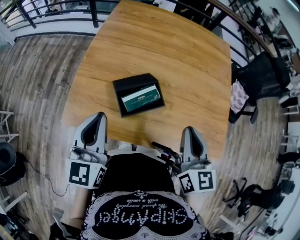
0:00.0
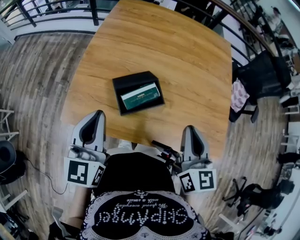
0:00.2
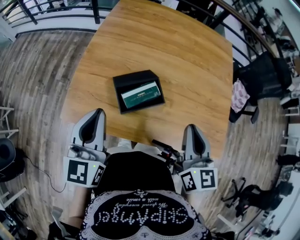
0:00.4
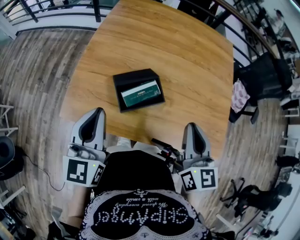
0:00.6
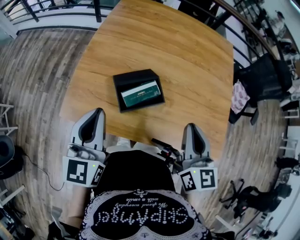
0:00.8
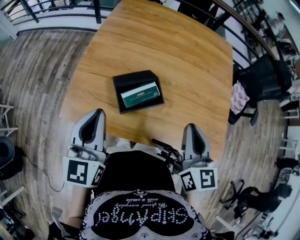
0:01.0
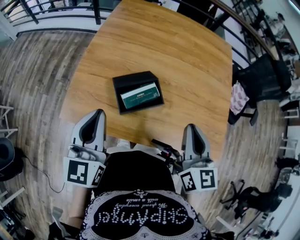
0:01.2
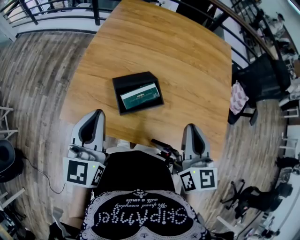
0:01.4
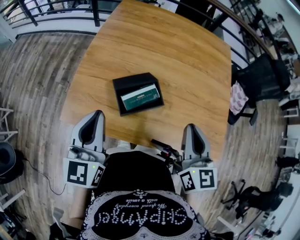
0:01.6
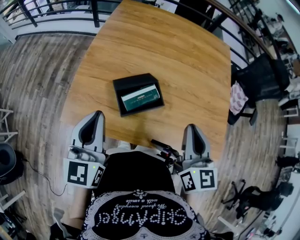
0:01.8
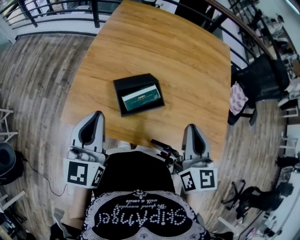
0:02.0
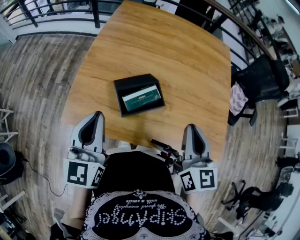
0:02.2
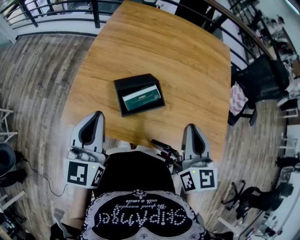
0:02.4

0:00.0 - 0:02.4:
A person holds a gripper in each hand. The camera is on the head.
0:00.0 - 0:02.4: Both grippers stay put.

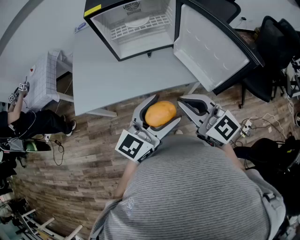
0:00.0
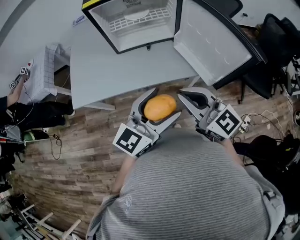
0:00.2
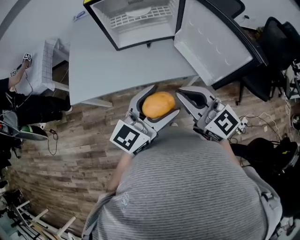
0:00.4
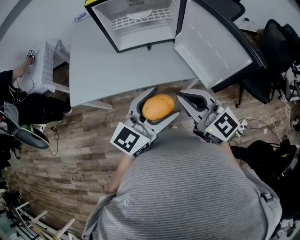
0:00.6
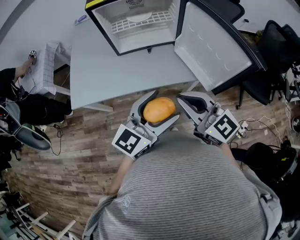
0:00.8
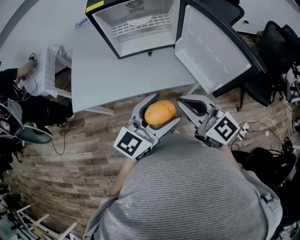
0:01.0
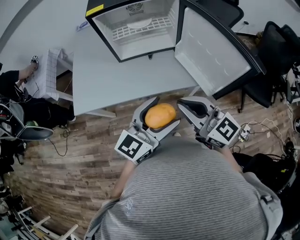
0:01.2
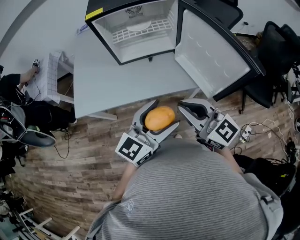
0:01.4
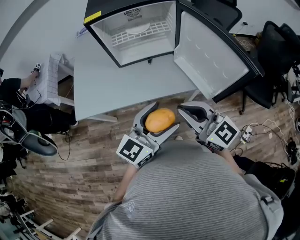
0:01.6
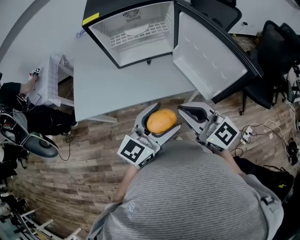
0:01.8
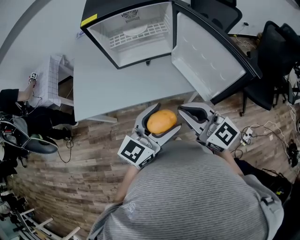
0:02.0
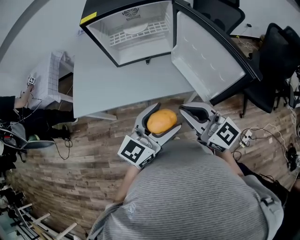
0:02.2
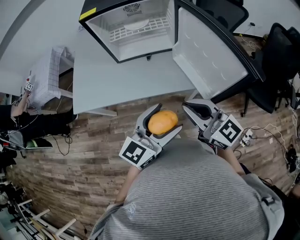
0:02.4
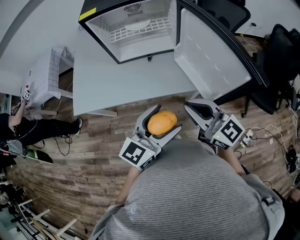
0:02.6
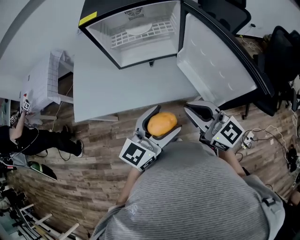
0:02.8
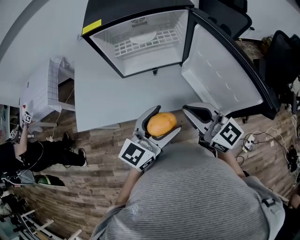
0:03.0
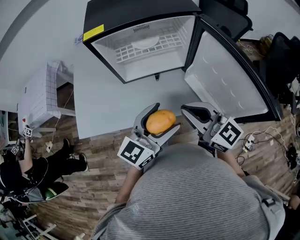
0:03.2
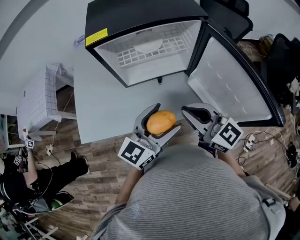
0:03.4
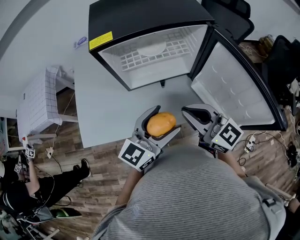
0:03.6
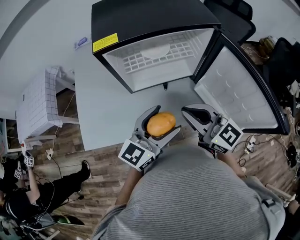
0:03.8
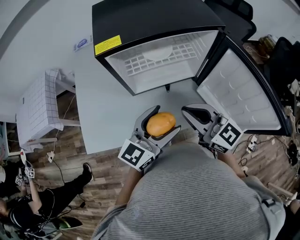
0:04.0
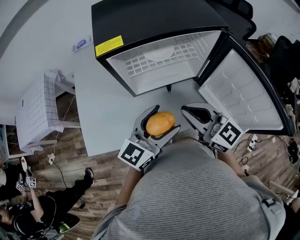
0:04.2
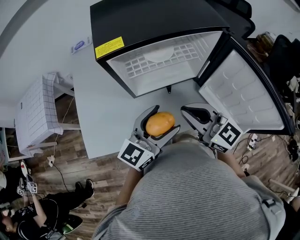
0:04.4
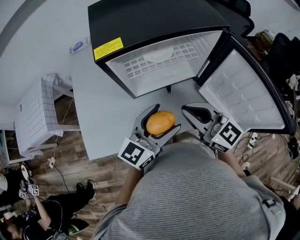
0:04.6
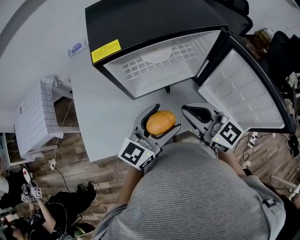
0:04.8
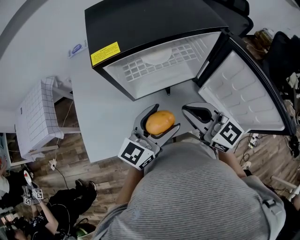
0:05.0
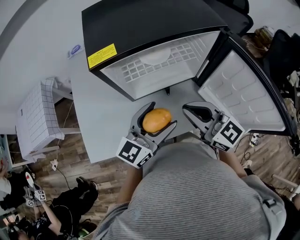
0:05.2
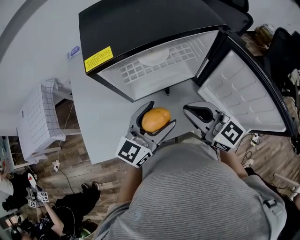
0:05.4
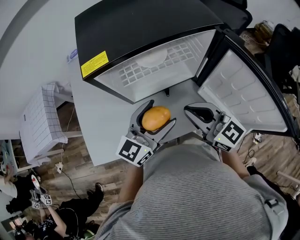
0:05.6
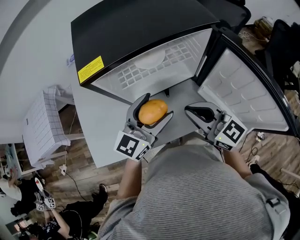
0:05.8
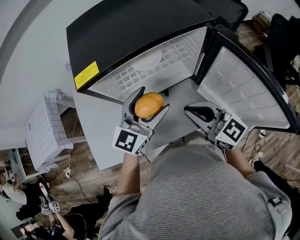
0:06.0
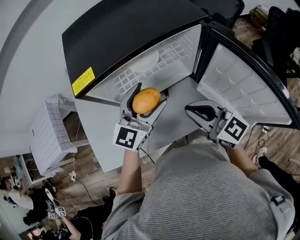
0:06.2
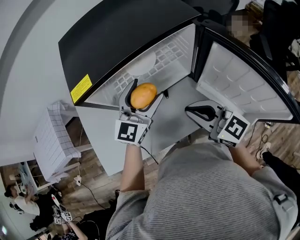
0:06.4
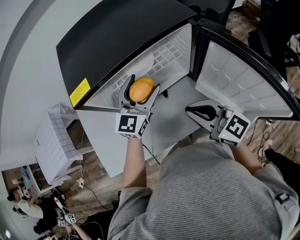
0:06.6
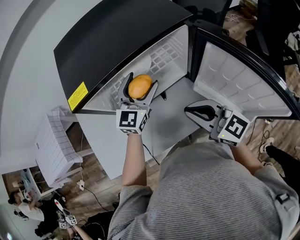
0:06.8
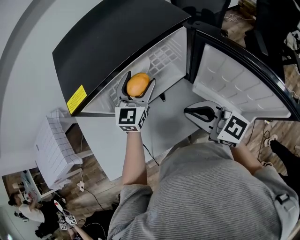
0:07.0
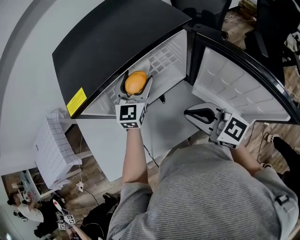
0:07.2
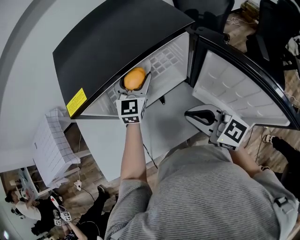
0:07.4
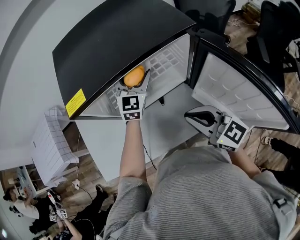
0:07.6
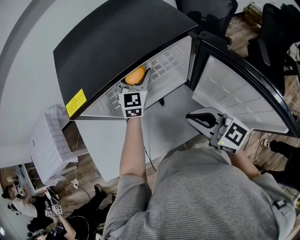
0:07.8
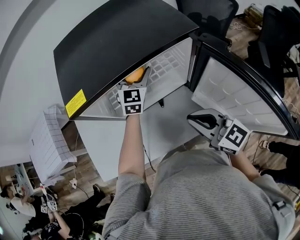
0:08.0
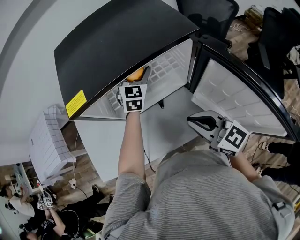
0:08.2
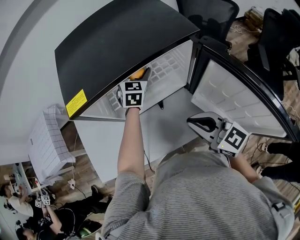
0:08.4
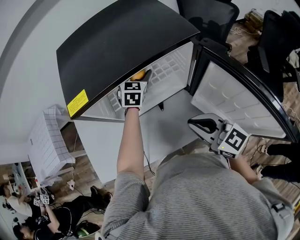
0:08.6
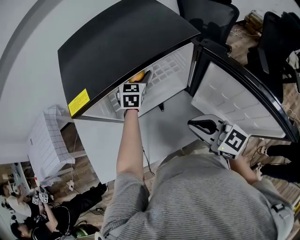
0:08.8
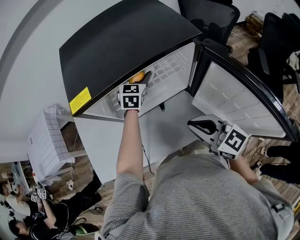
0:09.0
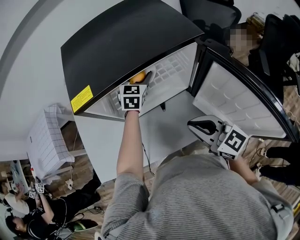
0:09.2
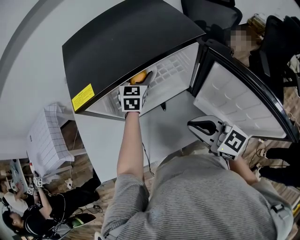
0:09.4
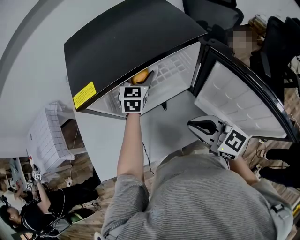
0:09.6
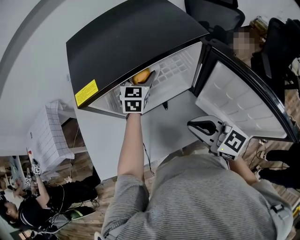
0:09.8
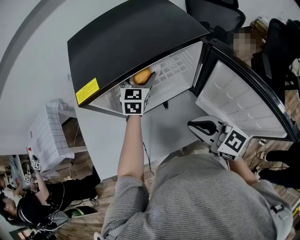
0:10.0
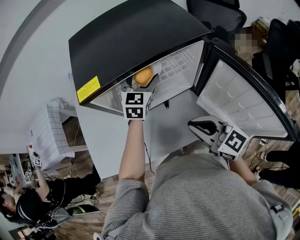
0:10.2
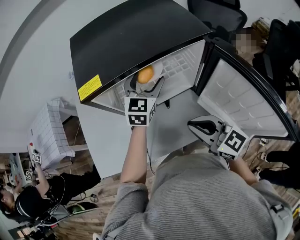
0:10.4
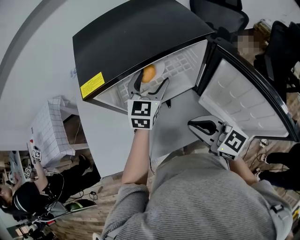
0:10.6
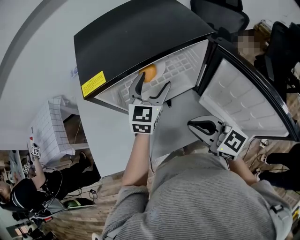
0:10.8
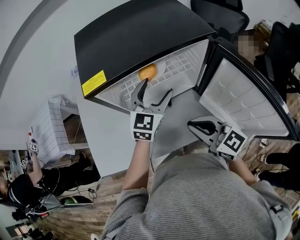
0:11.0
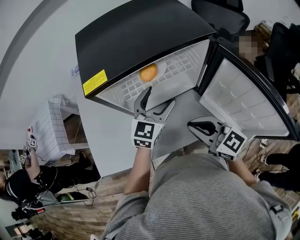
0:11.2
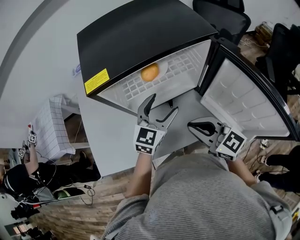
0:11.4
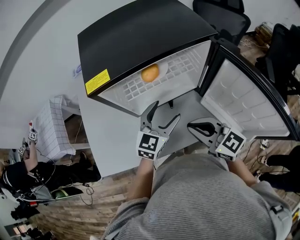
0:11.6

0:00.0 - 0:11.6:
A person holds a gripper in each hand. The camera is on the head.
0:00.0 - 0:01.4: The grippers move only a little.
0:01.4 - 0:02.8: The left gripper shifts by some 5 cm. The right gripper moves forward, some 5 cm.
0:02.8 - 0:04.4: Both grippers move forward and to the left, some 25 cm.
0:04.4 - 0:05.8: The right gripper ends up roughly 5 cm from where it was. Meanwhile the left gripper moves forward, roughly 10 cm.
0:05.8 - 0:07.2: The left gripper shifts approximately 15 cm forward, and changes its angle by about 20 degrees.
0:07.2 - 0:08.8: The left gripper shifts approximately 10 cm forward, and swivels about 20 degrees.
0:08.8 - 0:10.2: The left gripper moves backward, about 5 cm.
0:10.2 - 0:11.6: The left gripper travels backward by roughly 15 cm.

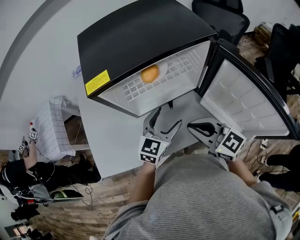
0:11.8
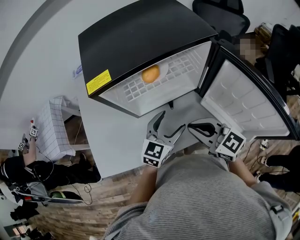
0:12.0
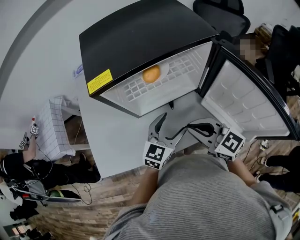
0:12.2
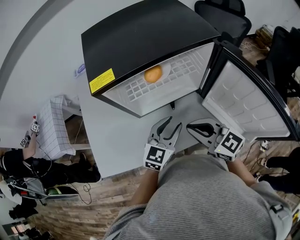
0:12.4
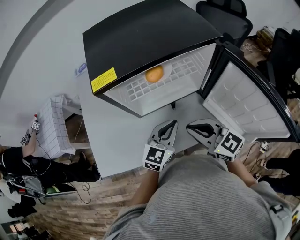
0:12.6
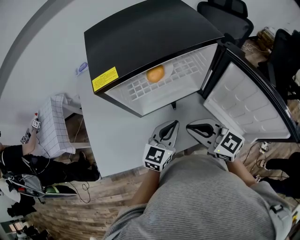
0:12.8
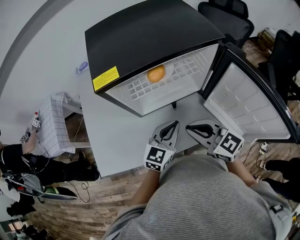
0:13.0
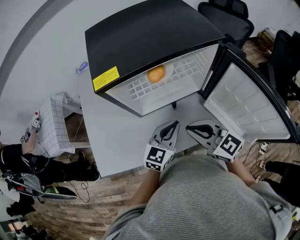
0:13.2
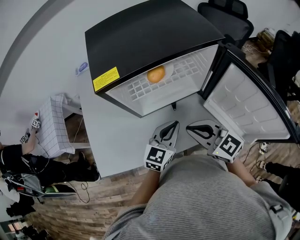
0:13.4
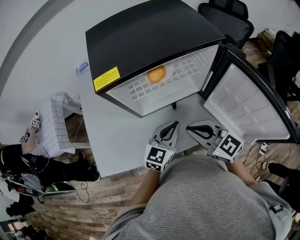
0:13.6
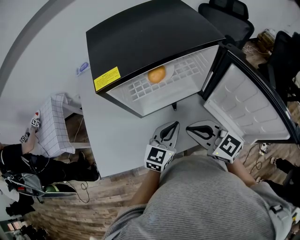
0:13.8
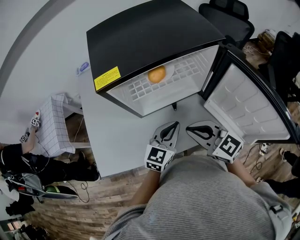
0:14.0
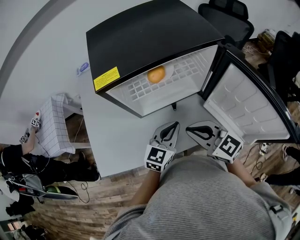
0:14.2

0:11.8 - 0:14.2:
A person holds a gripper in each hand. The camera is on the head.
0:11.8 - 0:13.0: The left gripper closes.
0:13.0 - 0:14.2: The grippers move only a little.

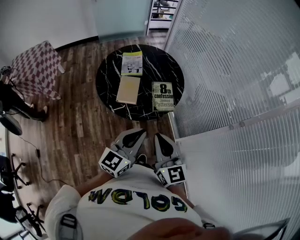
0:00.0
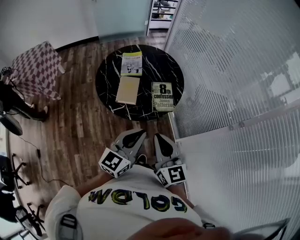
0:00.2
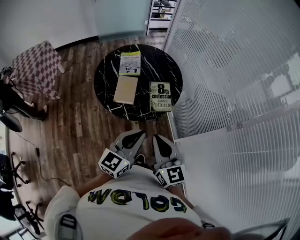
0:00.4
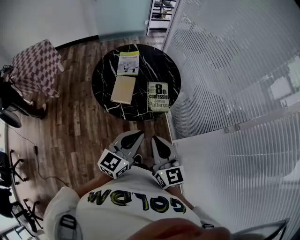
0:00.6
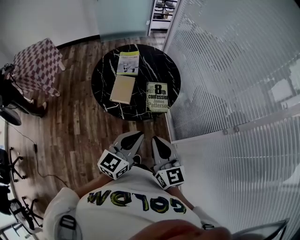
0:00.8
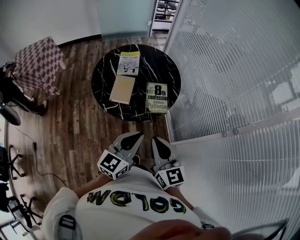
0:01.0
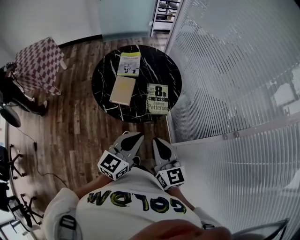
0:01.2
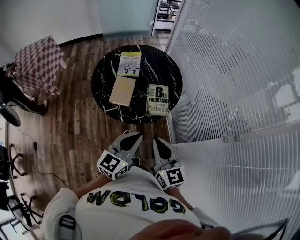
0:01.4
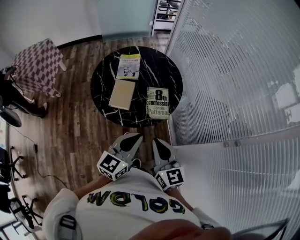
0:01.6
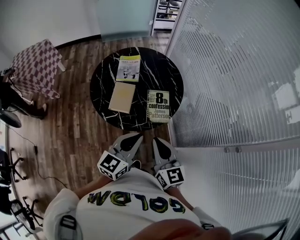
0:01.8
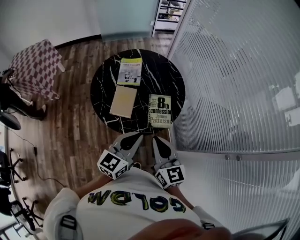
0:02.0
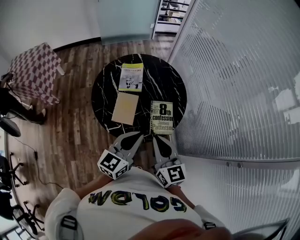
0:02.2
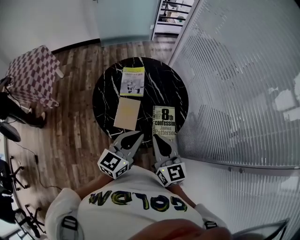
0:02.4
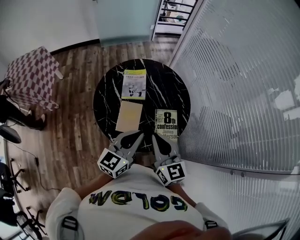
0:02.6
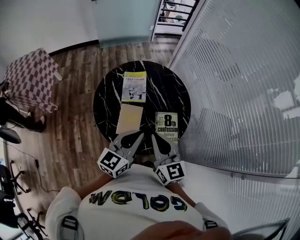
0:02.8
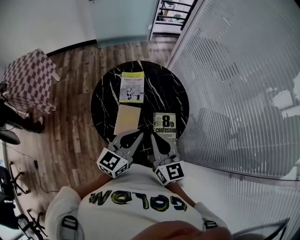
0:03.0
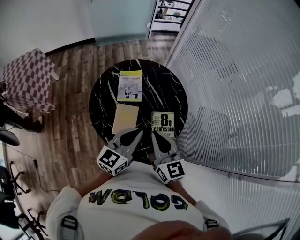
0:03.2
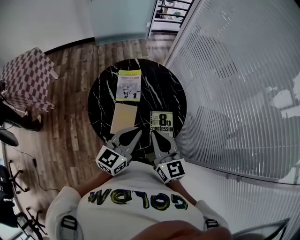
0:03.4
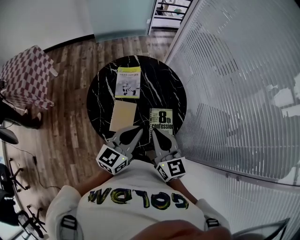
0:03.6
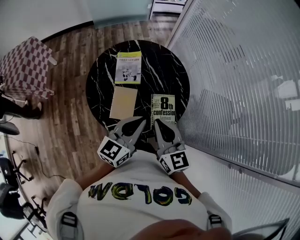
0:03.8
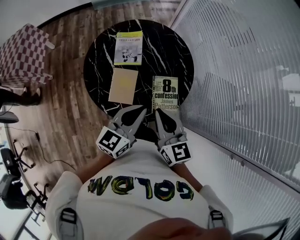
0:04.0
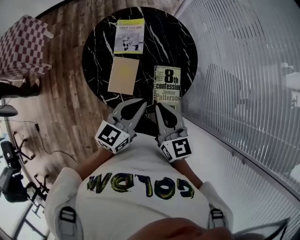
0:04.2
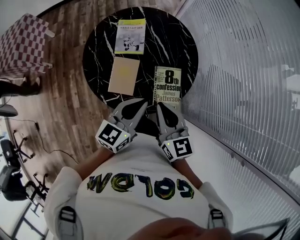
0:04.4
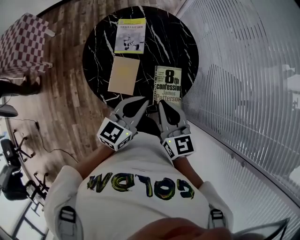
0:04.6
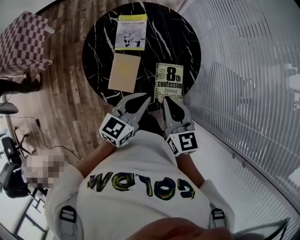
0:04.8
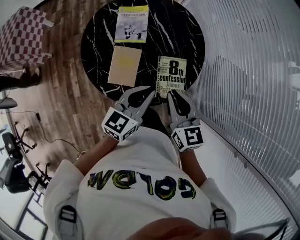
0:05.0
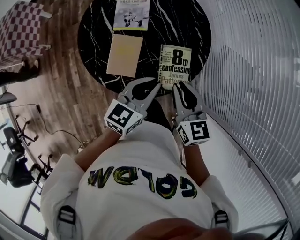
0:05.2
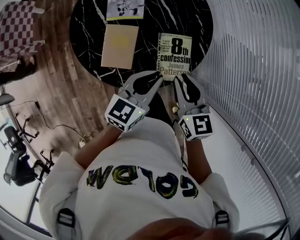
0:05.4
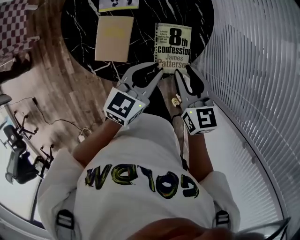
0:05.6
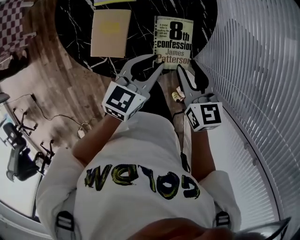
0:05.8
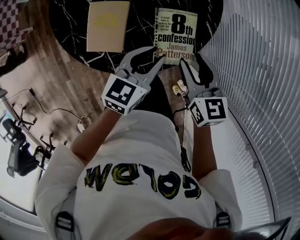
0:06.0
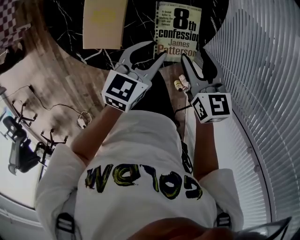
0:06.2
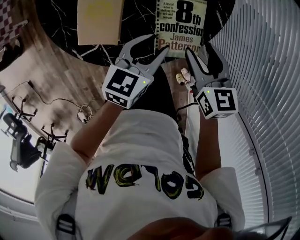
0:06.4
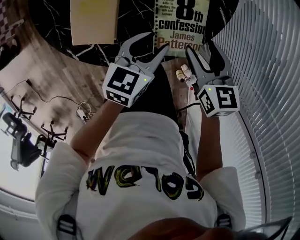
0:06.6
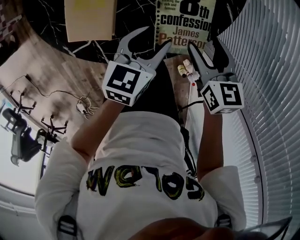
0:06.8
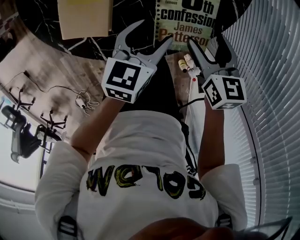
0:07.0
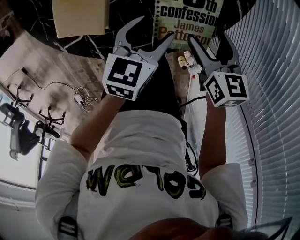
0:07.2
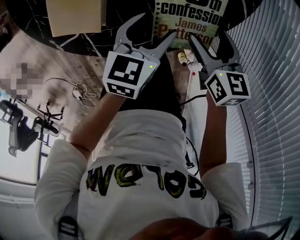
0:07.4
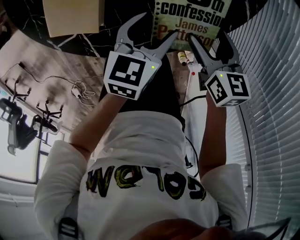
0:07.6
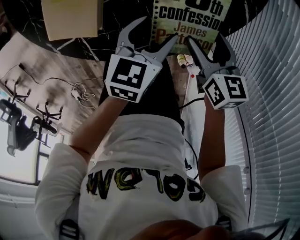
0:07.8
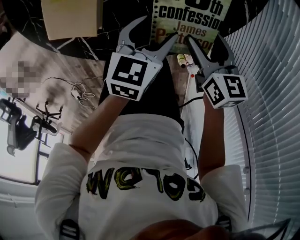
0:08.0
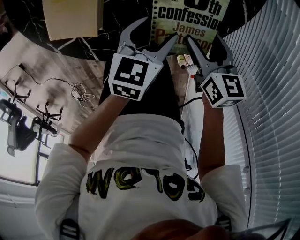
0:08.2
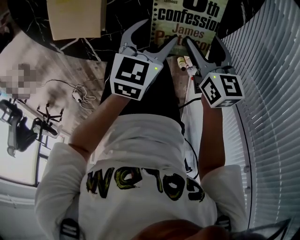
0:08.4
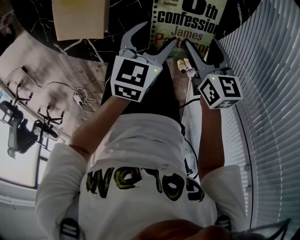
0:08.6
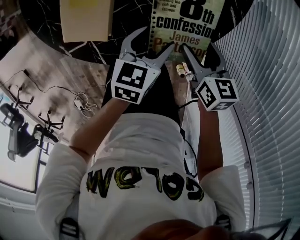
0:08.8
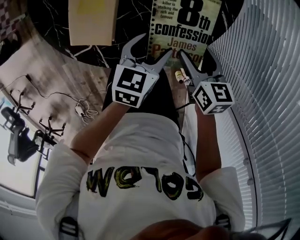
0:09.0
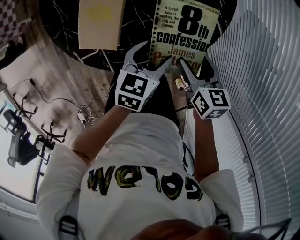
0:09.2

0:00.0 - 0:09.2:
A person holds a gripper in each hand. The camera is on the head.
0:00.0 - 0:01.6: The left gripper moves forward and to the right, some 10 cm. Meanwhile the right gripper shifts approximately 10 cm to the right and forward.
0:01.6 - 0:03.0: Both grippers travel together forward and to the left, approximately 25 cm.
0:03.0 - 0:04.6: Both grippers move downward and to the right, roughly 10 cm.
0:04.6 - 0:06.2: The right gripper goes approximately 20 cm downward and to the right, turns by approximately 20 degrees, and opens up. Meanwhile the left gripper goes roughly 20 cm downward, and opens up.
0:06.2 - 0:07.6: The grippers both shift downward by roughly 15 cm. The right gripper opens up. Meanwhile the left gripper opens up.
0:07.6 - 0:09.2: The grippers make only small movements.
